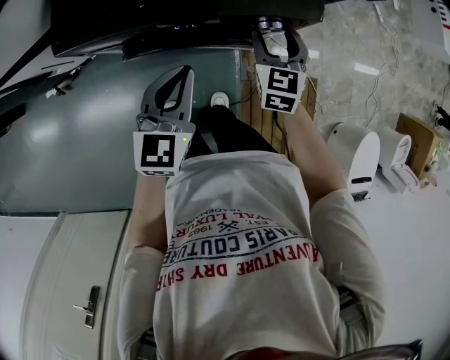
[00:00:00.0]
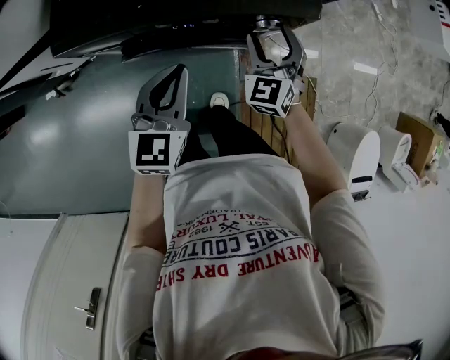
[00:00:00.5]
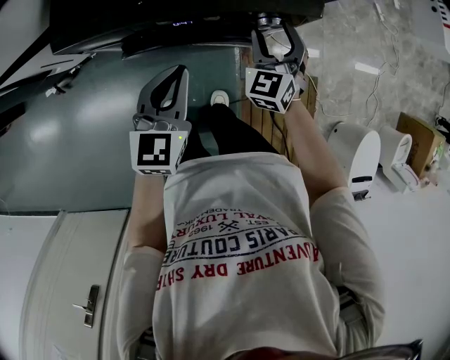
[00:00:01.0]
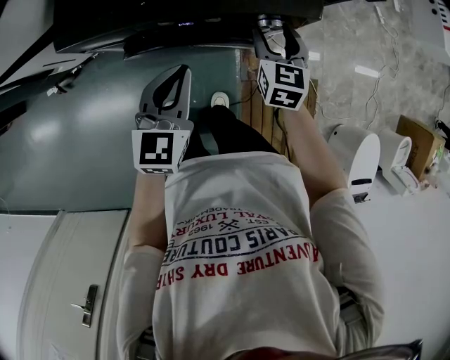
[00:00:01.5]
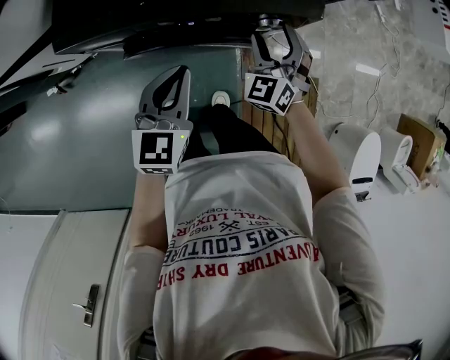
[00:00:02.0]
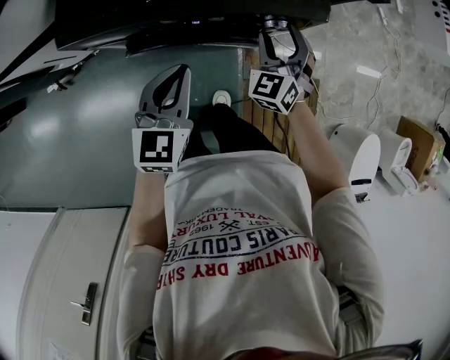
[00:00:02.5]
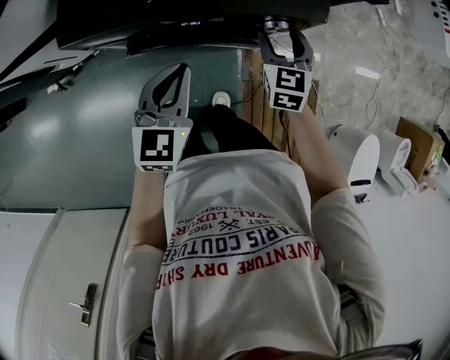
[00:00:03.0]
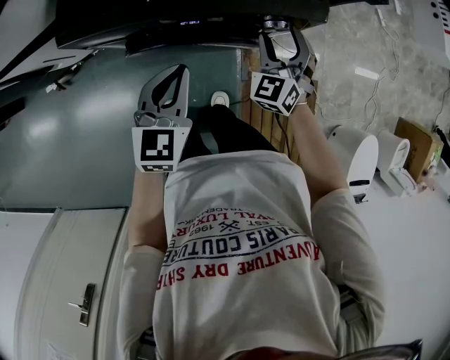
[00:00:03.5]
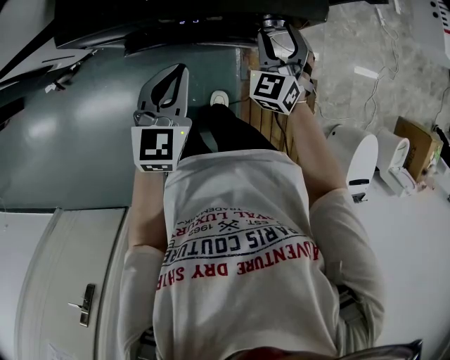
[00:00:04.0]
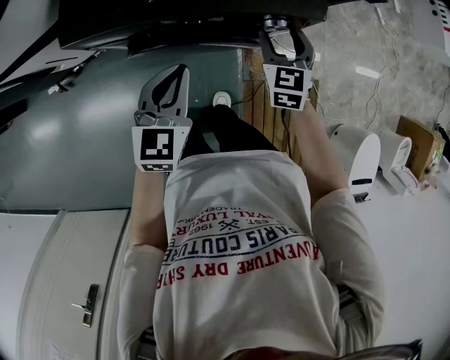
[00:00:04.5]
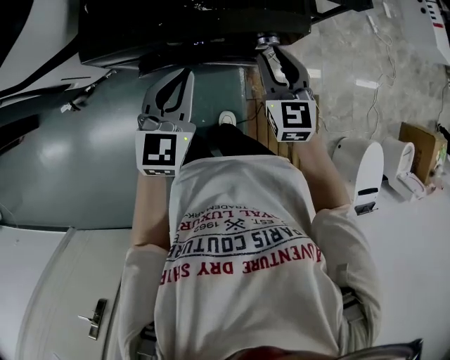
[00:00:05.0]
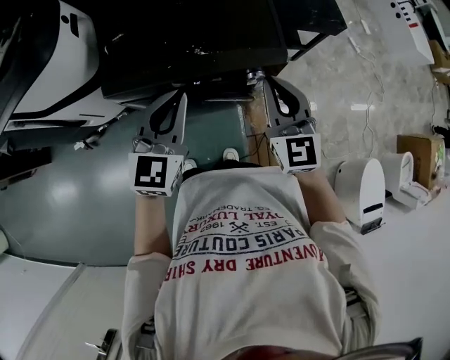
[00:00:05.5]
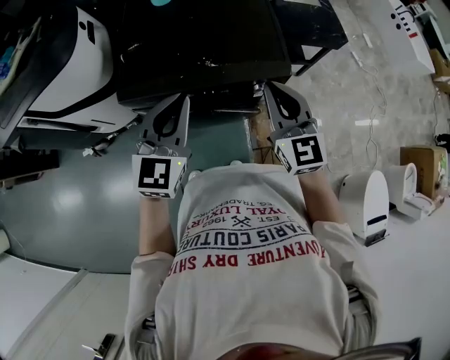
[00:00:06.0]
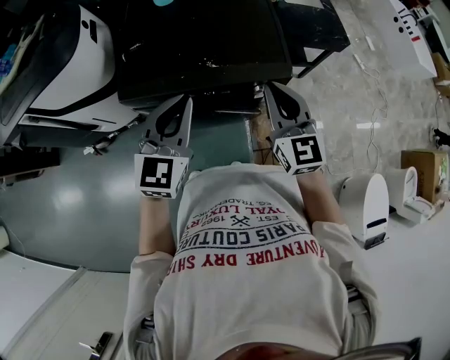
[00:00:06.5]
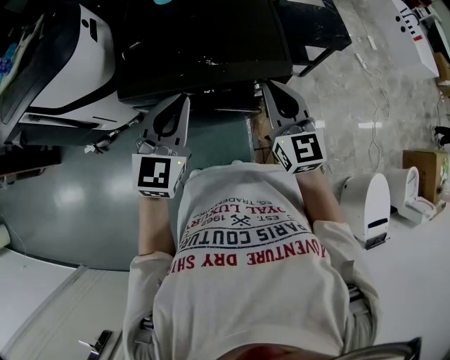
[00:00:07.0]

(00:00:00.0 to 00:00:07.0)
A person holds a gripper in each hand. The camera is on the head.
00:00:00.0 - 00:00:02.0: The right gripper turns by some 30 degrees.
00:00:03.5 - 00:00:05.0: Both grippers travel together upward, roughly 10 cm. The right gripper swivels roughly 30 degrees, and closes up.
00:00:05.0 - 00:00:07.0: The two grippers go approximately 15 cm upward. The right gripper closes up.

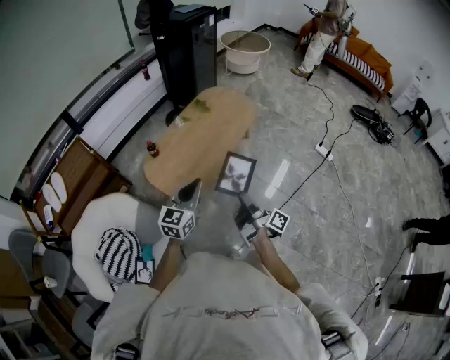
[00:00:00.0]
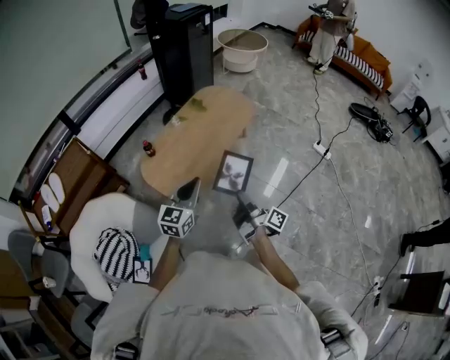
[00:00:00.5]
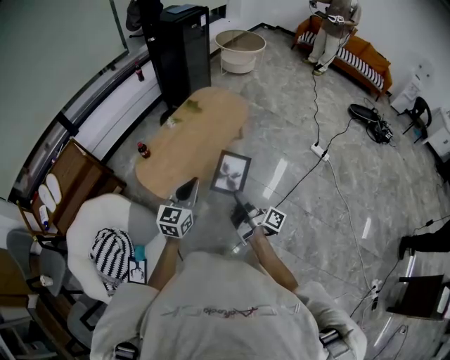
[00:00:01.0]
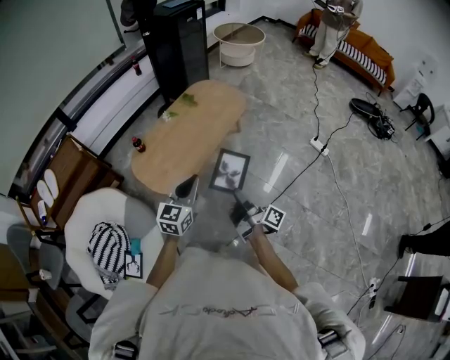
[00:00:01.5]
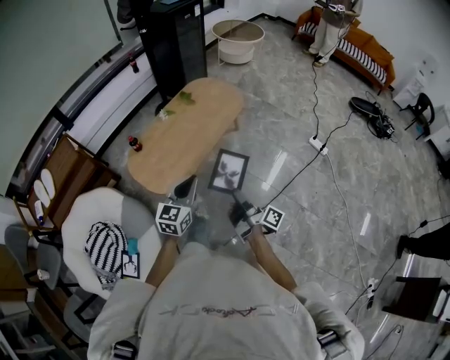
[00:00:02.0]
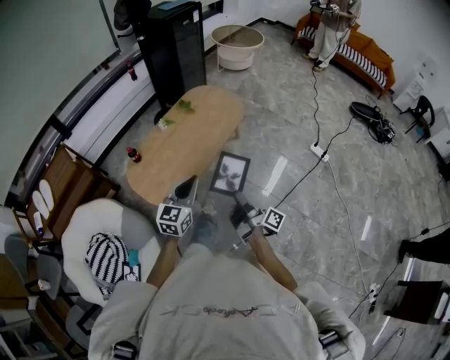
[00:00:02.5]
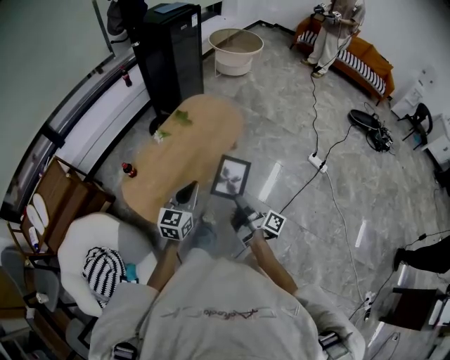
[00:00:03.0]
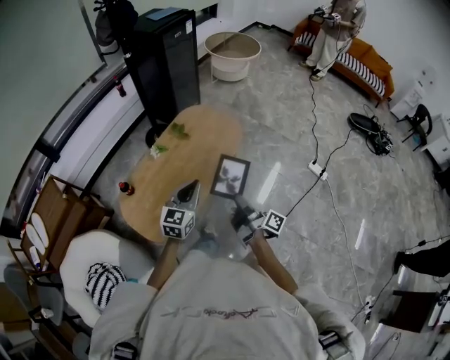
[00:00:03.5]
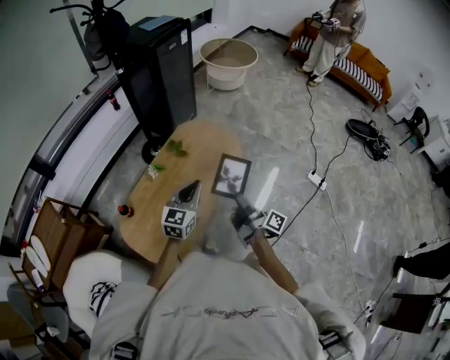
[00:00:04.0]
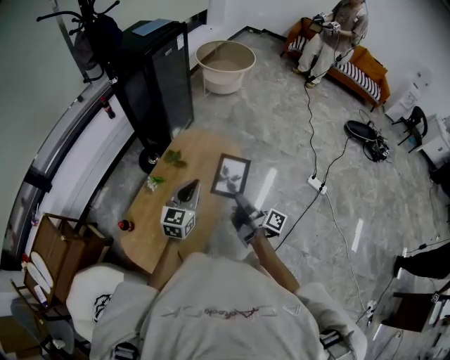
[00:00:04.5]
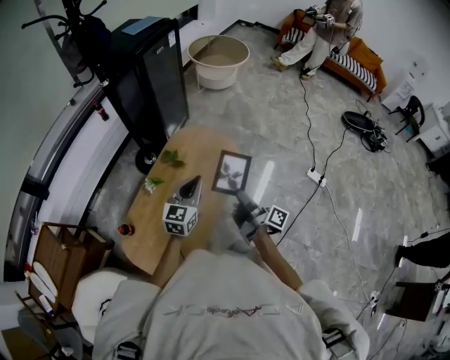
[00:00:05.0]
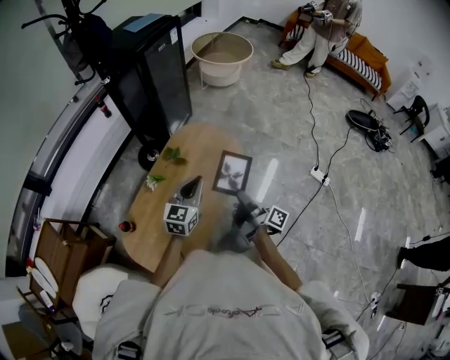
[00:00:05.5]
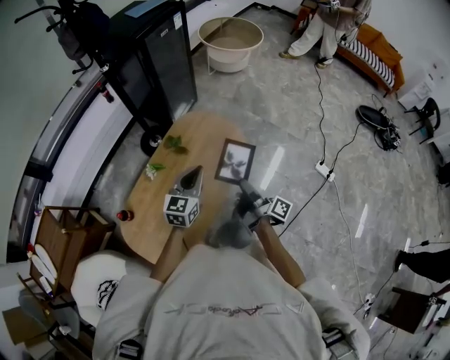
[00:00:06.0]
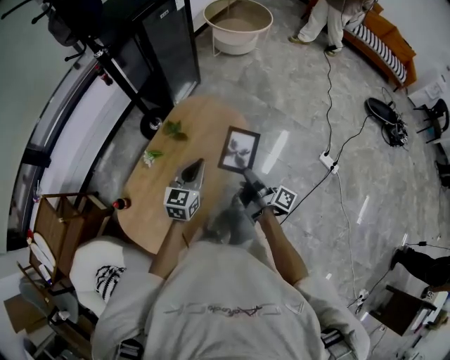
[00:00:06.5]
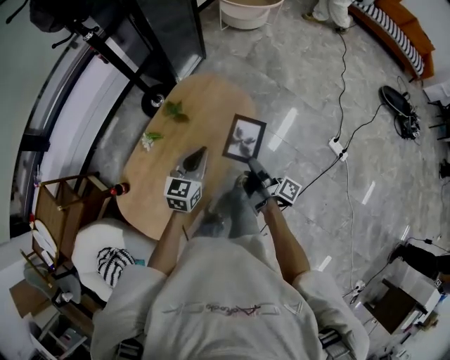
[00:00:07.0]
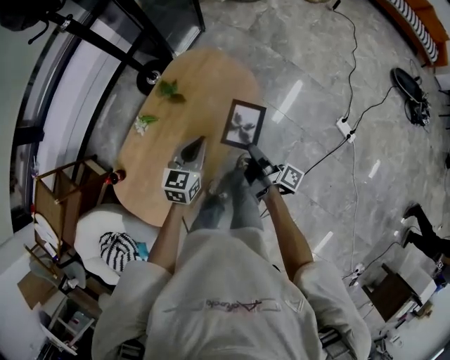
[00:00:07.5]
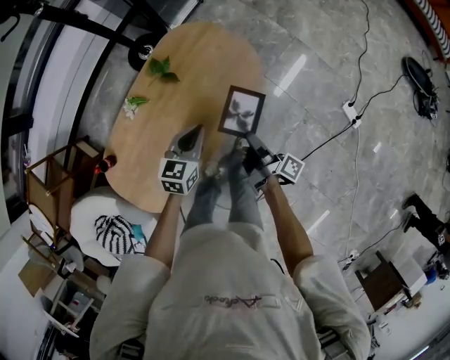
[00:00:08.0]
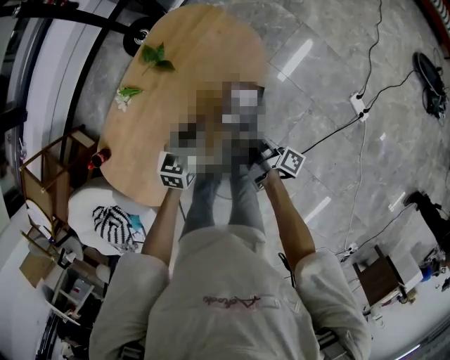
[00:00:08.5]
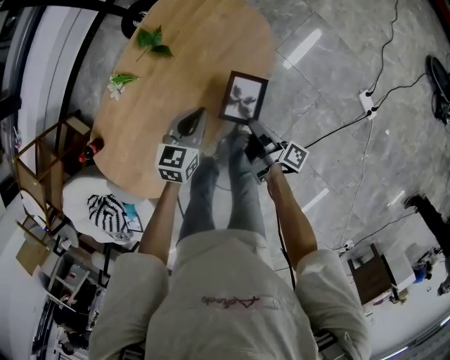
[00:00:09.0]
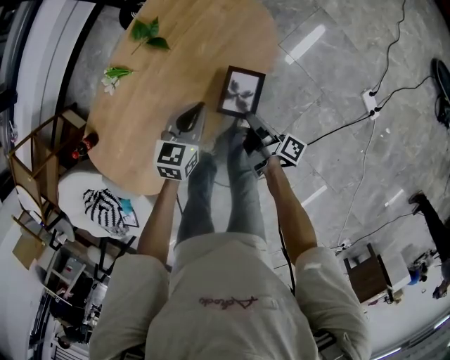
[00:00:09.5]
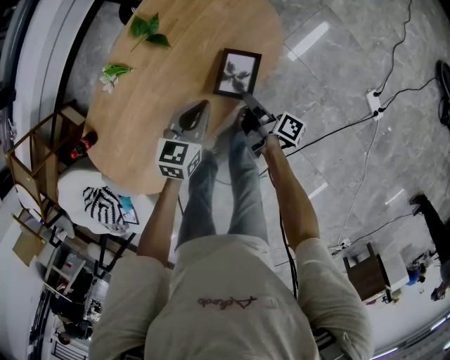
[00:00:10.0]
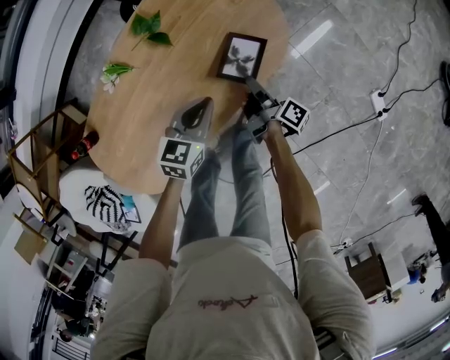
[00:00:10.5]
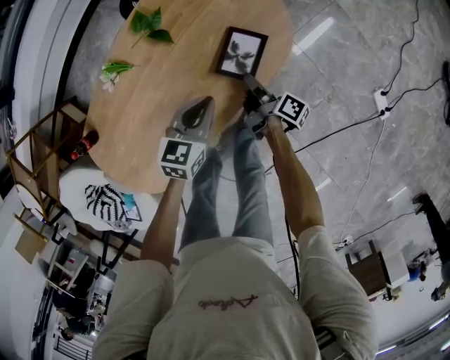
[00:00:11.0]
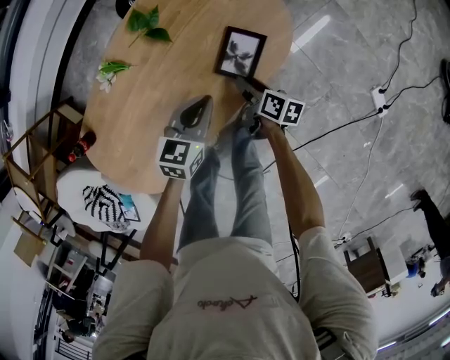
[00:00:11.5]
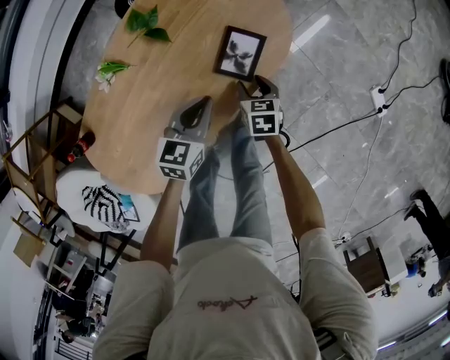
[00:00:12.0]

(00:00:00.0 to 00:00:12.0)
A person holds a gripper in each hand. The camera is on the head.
00:00:00.0 - 00:00:02.0: The left gripper shifts by some 15 cm.
00:00:02.0 - 00:00:04.0: The left gripper moves about 40 cm.
00:00:04.0 - 00:00:06.0: The left gripper changes place by some 15 cm.
00:00:06.0 - 00:00:08.0: The left gripper goes about 25 cm downward, and swivels about 20 degrees.
00:00:08.0 - 00:00:10.0: The left gripper is displaced downward by roughly 15 cm.

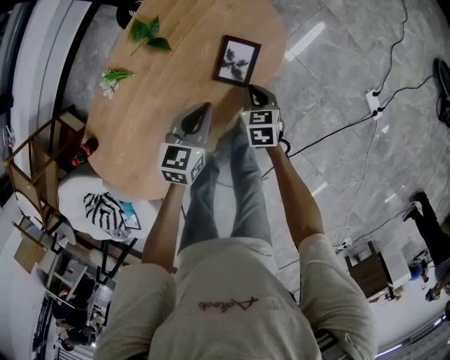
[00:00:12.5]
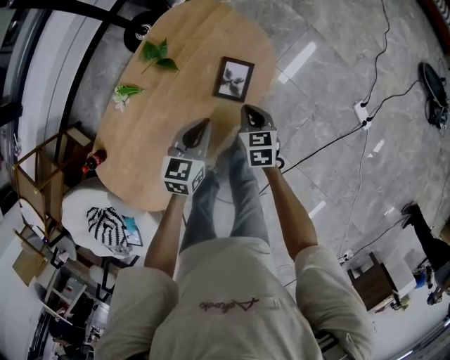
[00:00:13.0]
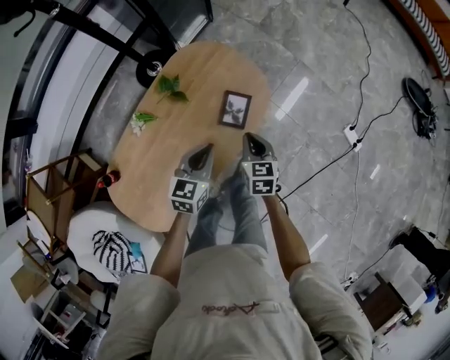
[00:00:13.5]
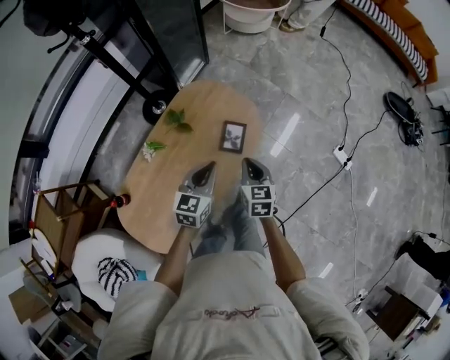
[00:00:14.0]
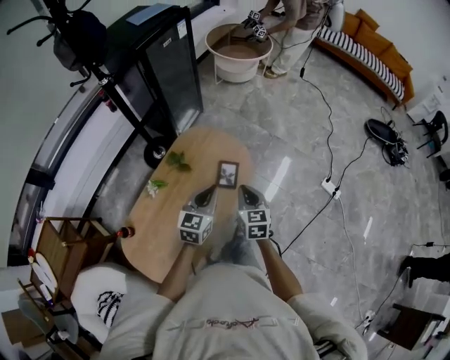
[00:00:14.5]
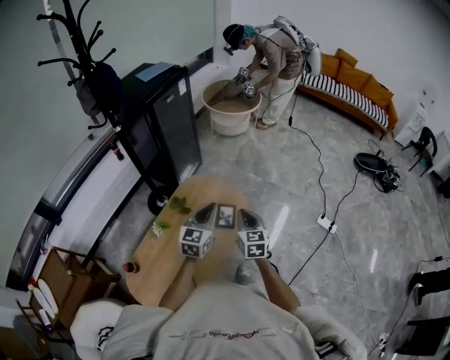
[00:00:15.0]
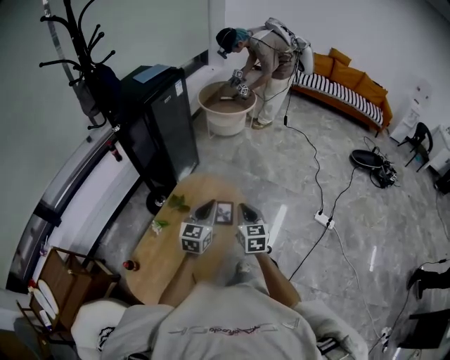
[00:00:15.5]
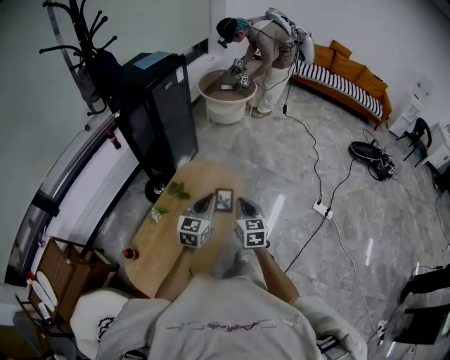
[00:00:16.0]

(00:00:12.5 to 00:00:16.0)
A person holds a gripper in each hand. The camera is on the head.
00:00:12.5 - 00:00:14.5: The left gripper moves upward, about 35 cm, and turns by some 20 degrees.
00:00:14.5 - 00:00:16.0: The left gripper goes about 10 cm upward.

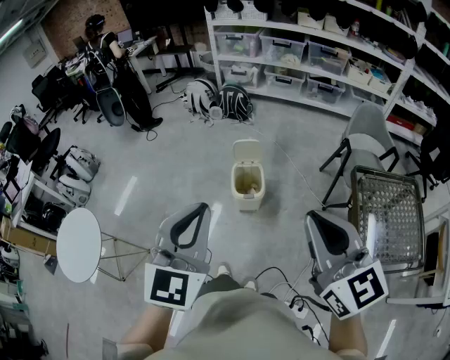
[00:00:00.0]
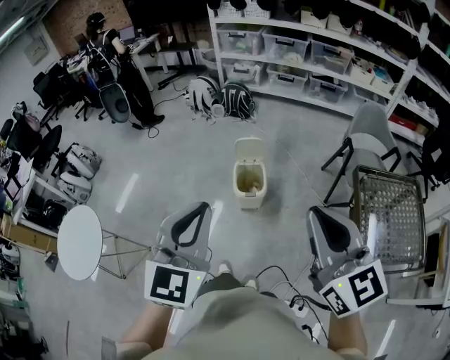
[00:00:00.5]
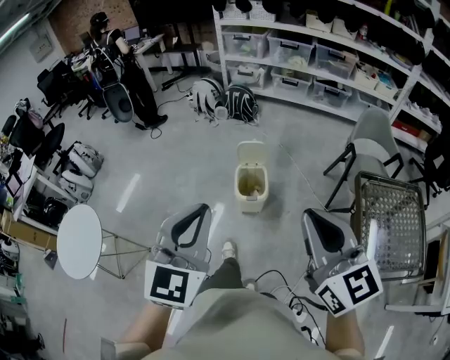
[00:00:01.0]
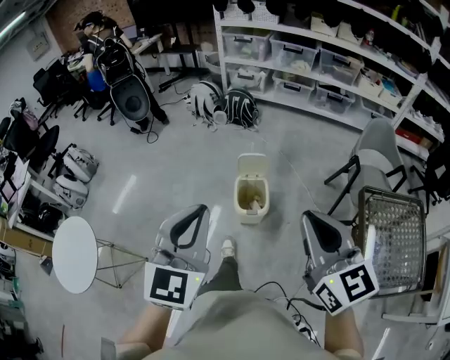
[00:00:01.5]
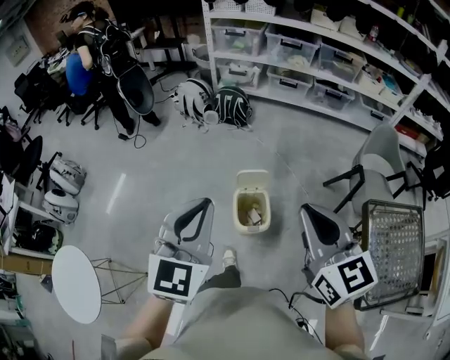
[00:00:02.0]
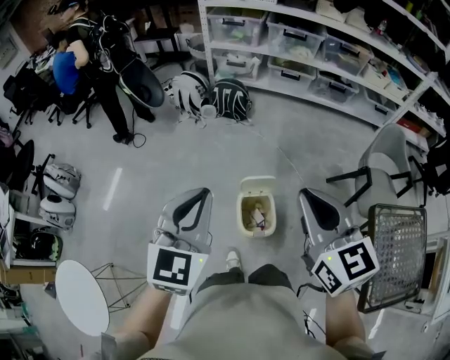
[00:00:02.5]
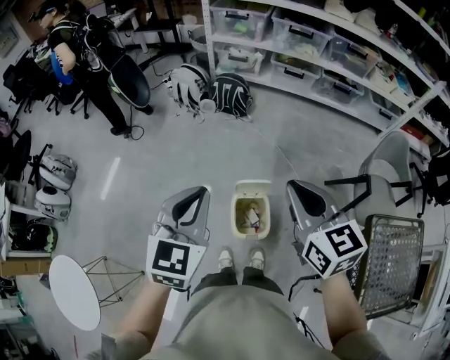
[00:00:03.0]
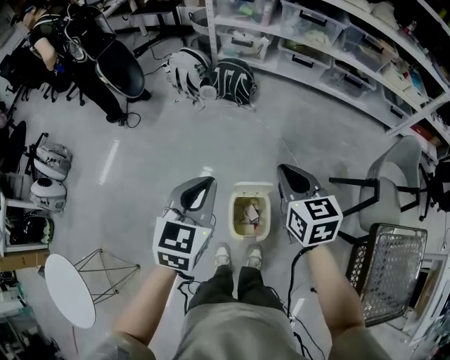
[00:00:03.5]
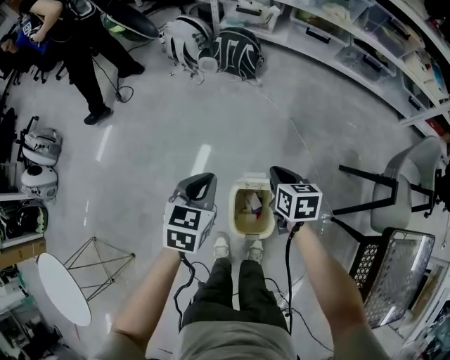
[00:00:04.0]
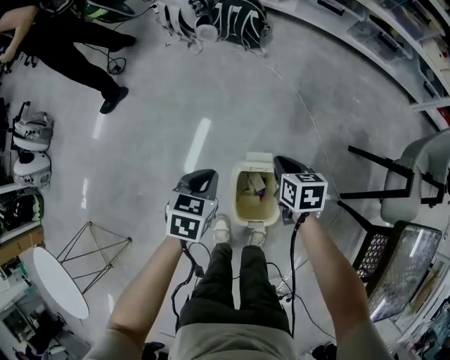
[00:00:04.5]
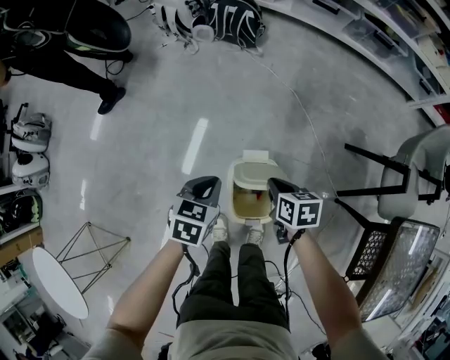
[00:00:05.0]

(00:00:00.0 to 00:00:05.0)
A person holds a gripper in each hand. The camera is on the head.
00:00:00.0 - 00:00:02.5: The two grippers travel together, forward, some 40 cm.
00:00:02.5 - 00:00:05.0: The grippers both shift downward by about 50 cm. The right gripper tilts its fingers approximately 40 degrees downward; the left gripper angles its fingers downward, by about 30 degrees.
